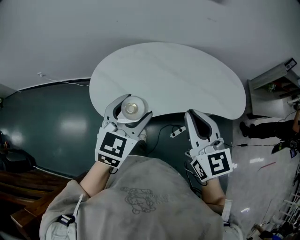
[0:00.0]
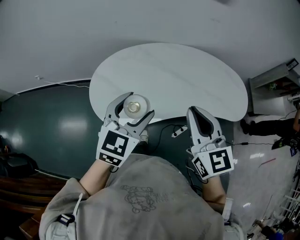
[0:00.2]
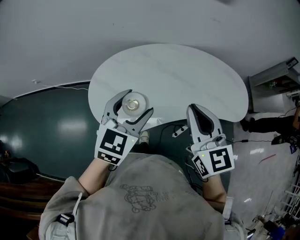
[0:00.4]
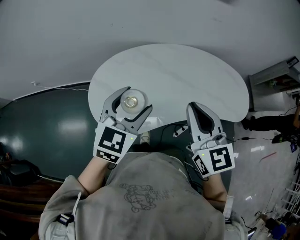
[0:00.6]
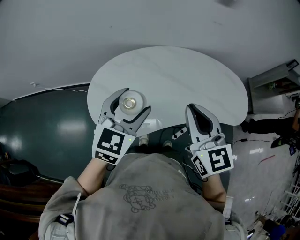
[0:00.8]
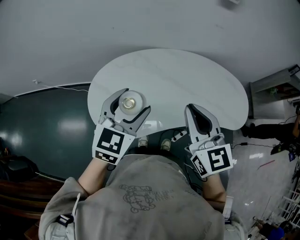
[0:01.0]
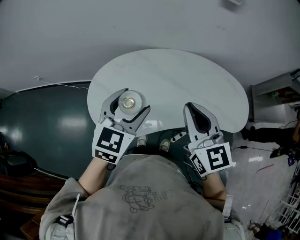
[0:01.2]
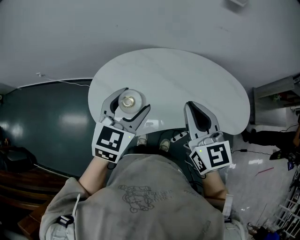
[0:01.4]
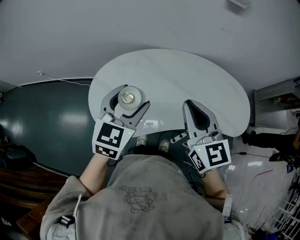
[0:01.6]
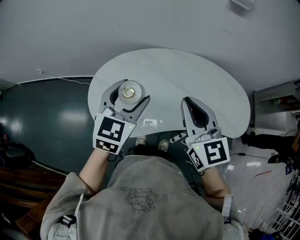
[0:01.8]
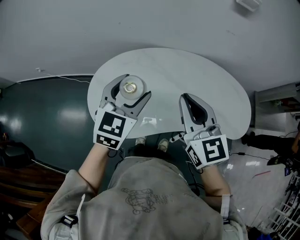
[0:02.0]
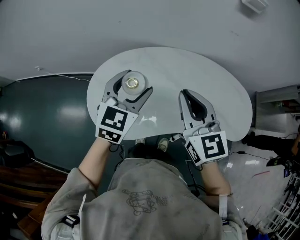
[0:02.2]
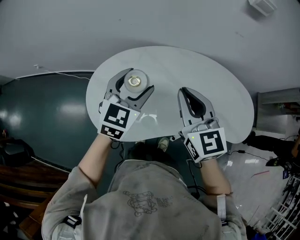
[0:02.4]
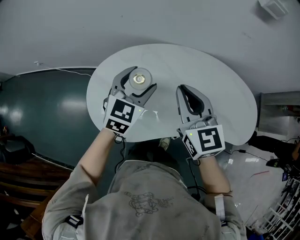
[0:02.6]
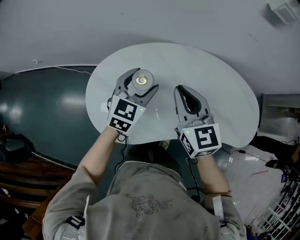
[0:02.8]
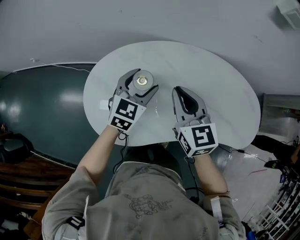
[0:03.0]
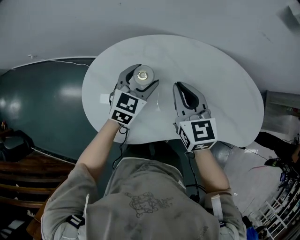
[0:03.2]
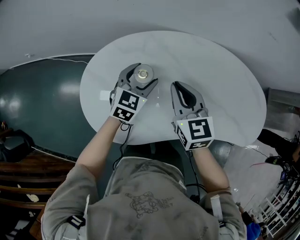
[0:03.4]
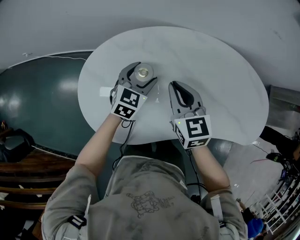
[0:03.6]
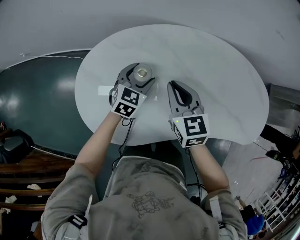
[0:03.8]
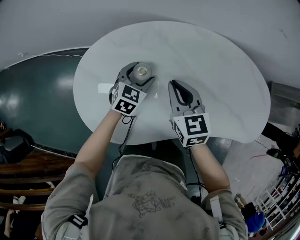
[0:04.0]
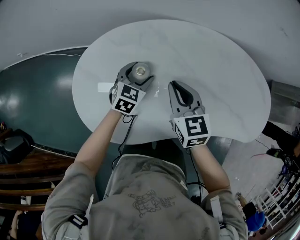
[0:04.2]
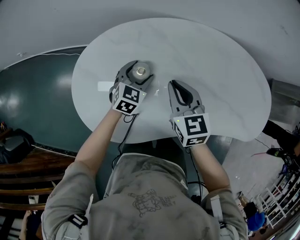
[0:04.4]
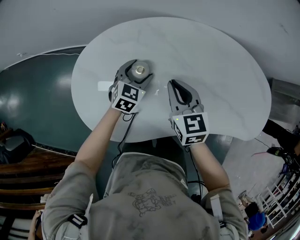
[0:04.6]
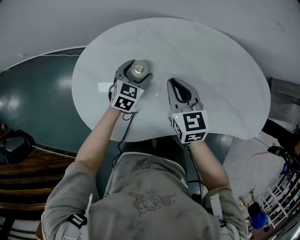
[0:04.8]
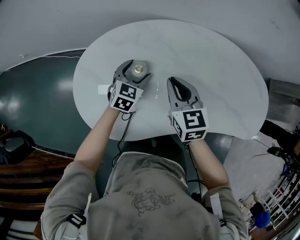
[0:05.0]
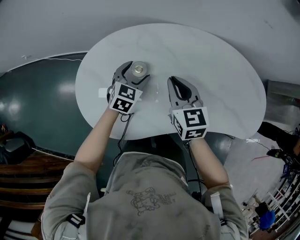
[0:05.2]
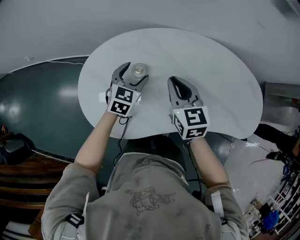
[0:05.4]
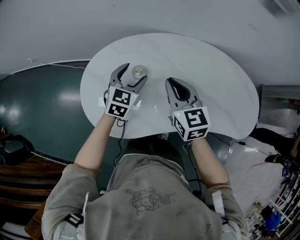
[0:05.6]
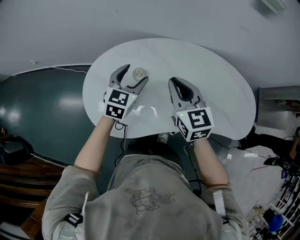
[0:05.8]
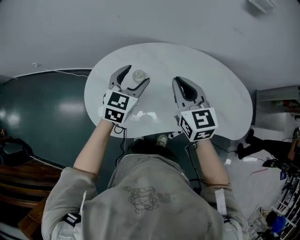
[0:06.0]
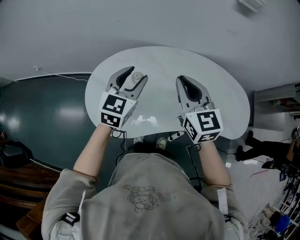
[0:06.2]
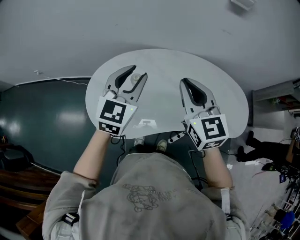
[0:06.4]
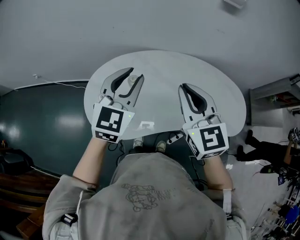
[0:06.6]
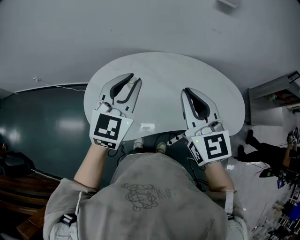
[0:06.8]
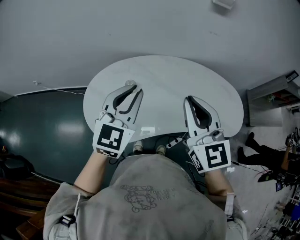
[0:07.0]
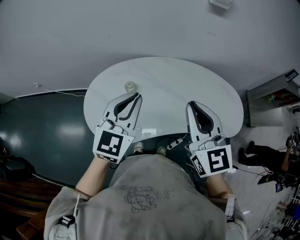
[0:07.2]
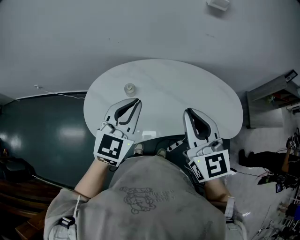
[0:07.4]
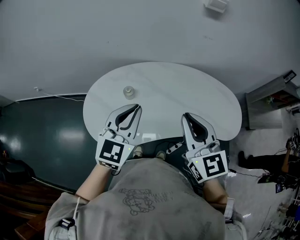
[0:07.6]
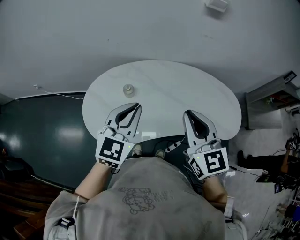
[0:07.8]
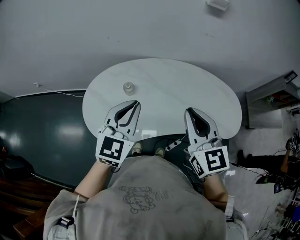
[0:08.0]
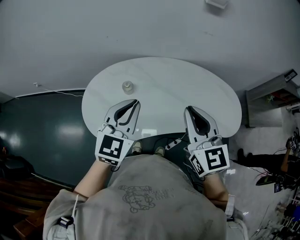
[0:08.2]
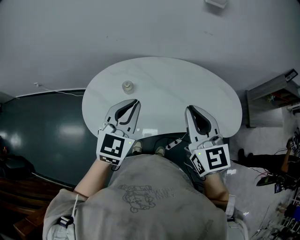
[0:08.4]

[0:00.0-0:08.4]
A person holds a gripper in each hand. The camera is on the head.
0:00.0 to 0:01.4: Both grippers travel together forward, roughly 15 cm.
0:01.4 to 0:02.8: The left gripper heads forward and downward, covering roughly 20 cm, while the right gripper is displaced forward, downward and to the left by roughly 20 cm.
0:02.8 to 0:04.2: Both grippers travel together downward, roughly 20 cm.
0:04.2 to 0:05.6: Both grippers travel together upward, some 10 cm.
0:05.6 to 0:07.0: The two grippers go some 25 cm upward and backward. The left gripper turns by about 20 degrees, and closes its fingers. Meanwhile the right gripper swivels approximately 20 degrees.
0:07.0 to 0:08.4: The right gripper changes place by about 5 cm.

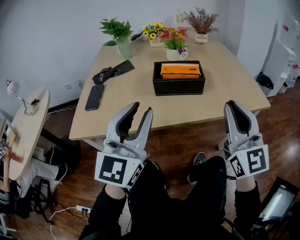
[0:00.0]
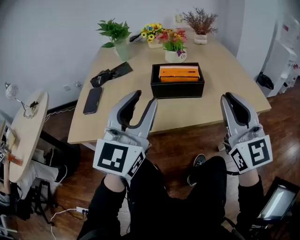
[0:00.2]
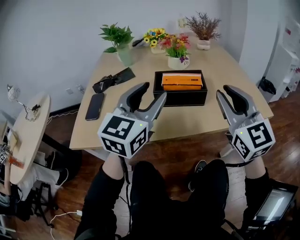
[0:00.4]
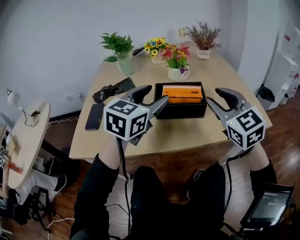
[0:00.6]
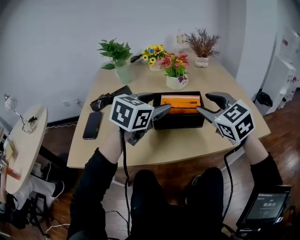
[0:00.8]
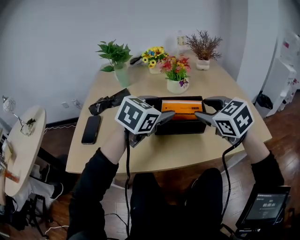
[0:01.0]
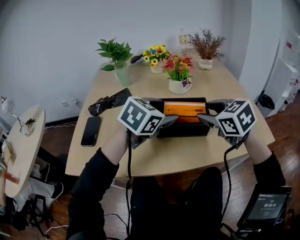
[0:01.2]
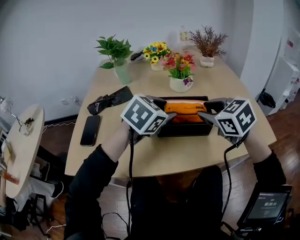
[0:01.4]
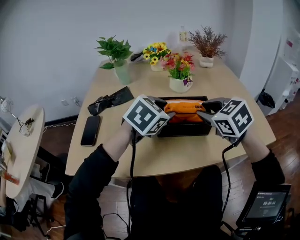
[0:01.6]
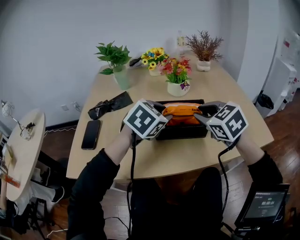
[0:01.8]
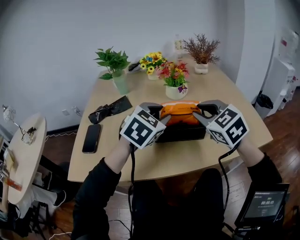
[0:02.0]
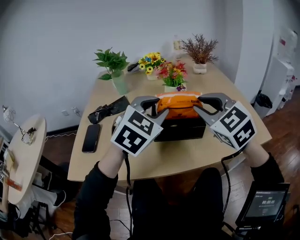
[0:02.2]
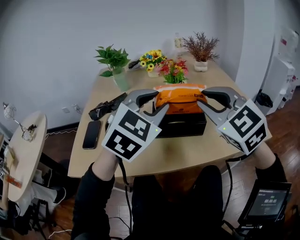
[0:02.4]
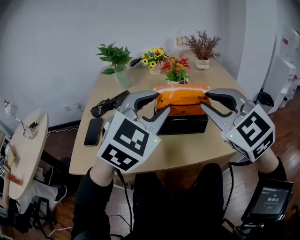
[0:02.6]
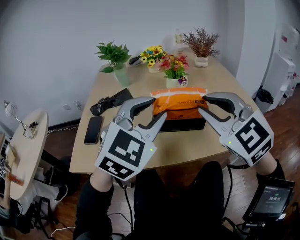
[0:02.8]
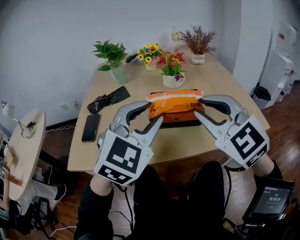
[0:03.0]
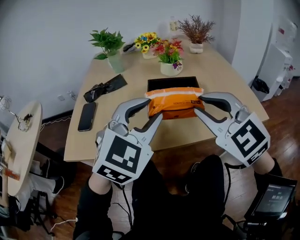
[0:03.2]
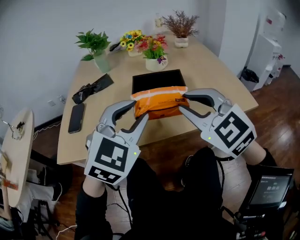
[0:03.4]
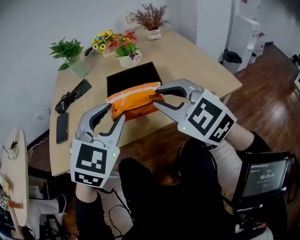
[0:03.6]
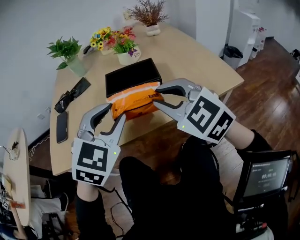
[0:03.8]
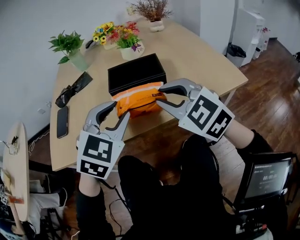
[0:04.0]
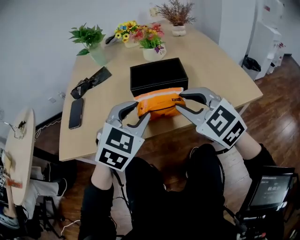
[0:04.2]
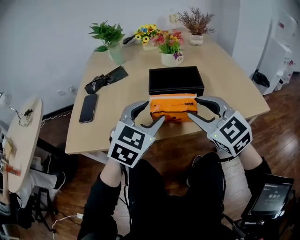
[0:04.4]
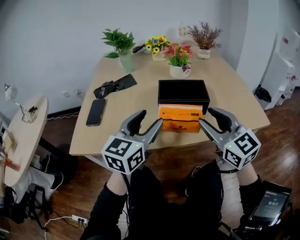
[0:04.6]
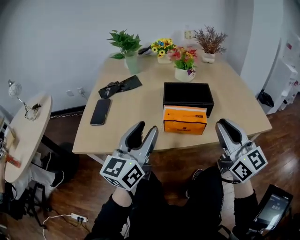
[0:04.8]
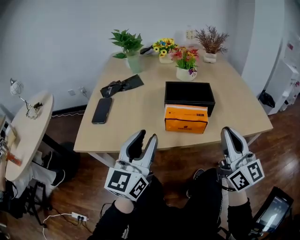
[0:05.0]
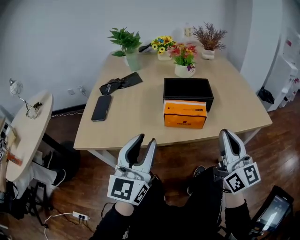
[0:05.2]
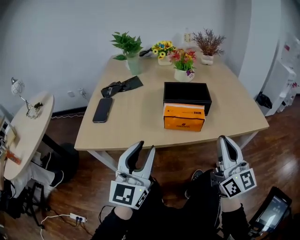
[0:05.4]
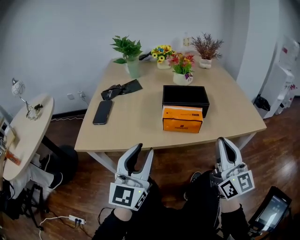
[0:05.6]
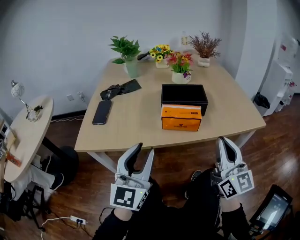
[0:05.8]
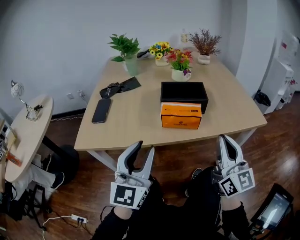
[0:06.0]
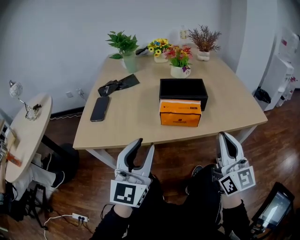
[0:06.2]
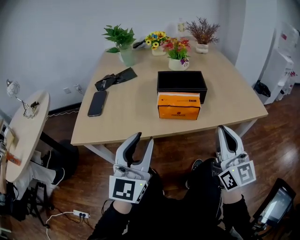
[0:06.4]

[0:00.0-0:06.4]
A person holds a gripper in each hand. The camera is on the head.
0:00.0 to 0:01.6: Both grippers travel together forward, approximately 25 cm. The left gripper angles its fingers downward, by roughly 50 degrees, and opens, then closes again; the right gripper points its fingers some 50 degrees further downward, and opens up.
0:01.6 to 0:03.2: Both grippers move backward and upward, approximately 20 cm. The left gripper rotates approximately 30 degrees; the right gripper turns by roughly 30 degrees.
0:03.2 to 0:04.8: The right gripper changes its angle by approximately 40 degrees, and opens, then closes again. The left gripper heads to the left and downward, covering approximately 10 cm, and rotates around the line of its fingers by some 50 degrees, counterclockwise from behind.
0:04.8 to 0:06.4: Both grippers move backward, roughly 5 cm. The left gripper swivels approximately 20 degrees.

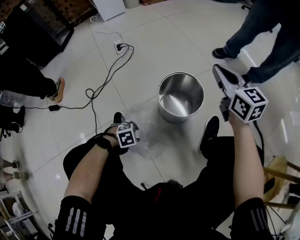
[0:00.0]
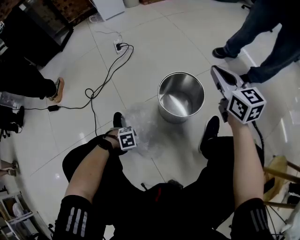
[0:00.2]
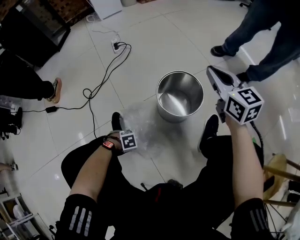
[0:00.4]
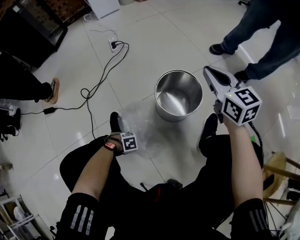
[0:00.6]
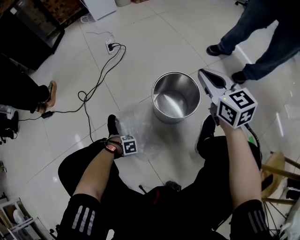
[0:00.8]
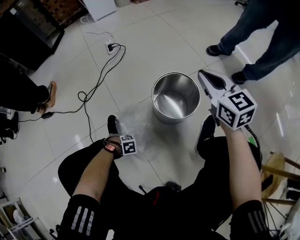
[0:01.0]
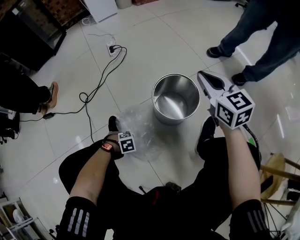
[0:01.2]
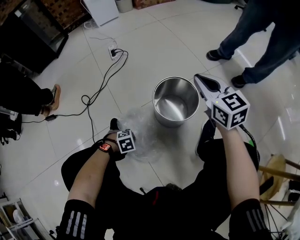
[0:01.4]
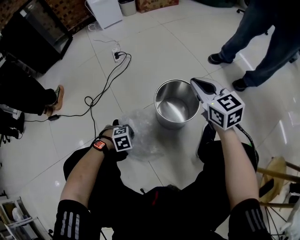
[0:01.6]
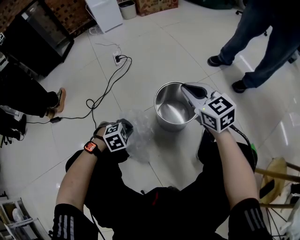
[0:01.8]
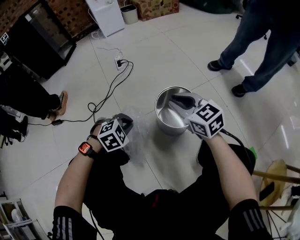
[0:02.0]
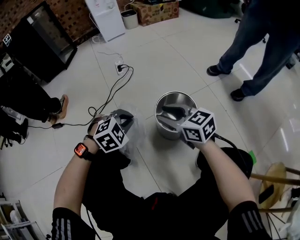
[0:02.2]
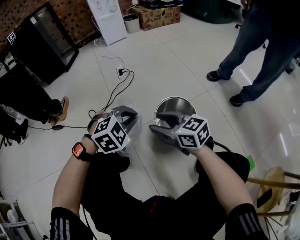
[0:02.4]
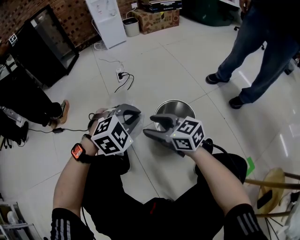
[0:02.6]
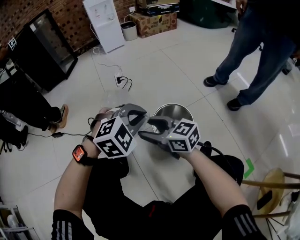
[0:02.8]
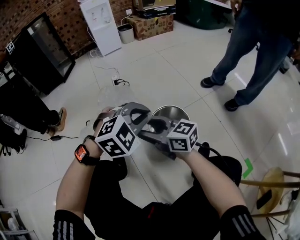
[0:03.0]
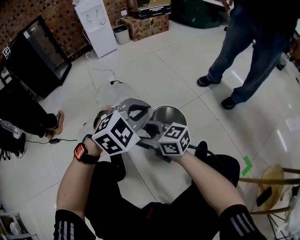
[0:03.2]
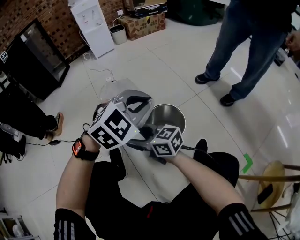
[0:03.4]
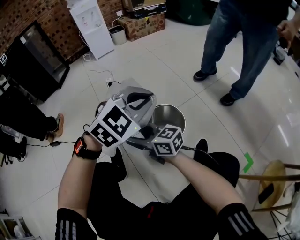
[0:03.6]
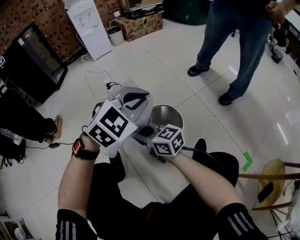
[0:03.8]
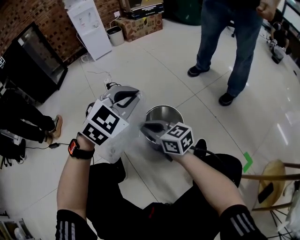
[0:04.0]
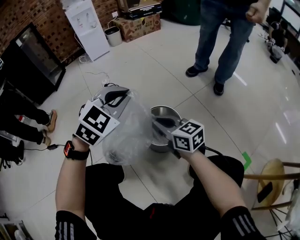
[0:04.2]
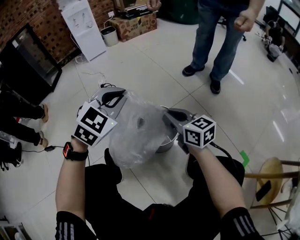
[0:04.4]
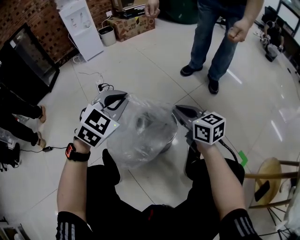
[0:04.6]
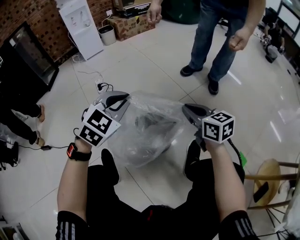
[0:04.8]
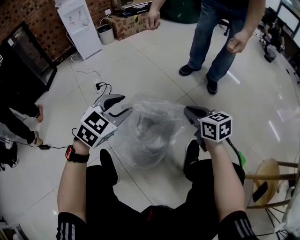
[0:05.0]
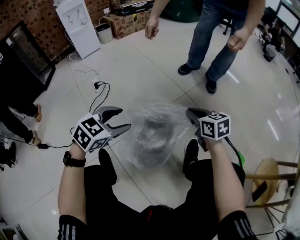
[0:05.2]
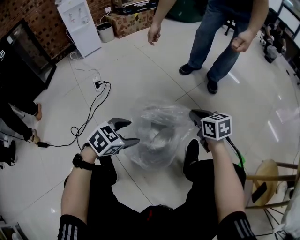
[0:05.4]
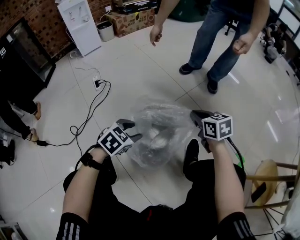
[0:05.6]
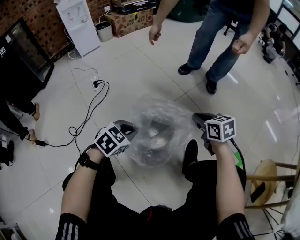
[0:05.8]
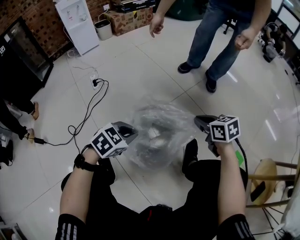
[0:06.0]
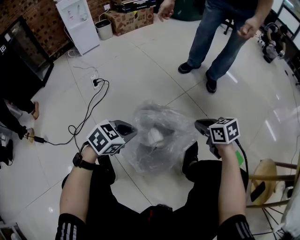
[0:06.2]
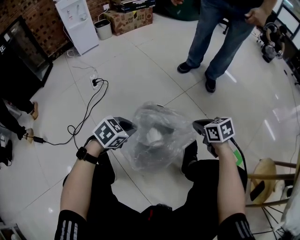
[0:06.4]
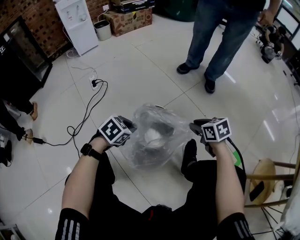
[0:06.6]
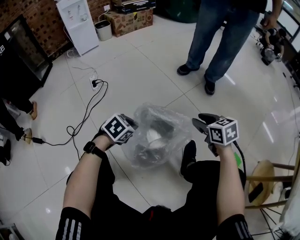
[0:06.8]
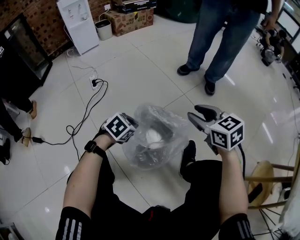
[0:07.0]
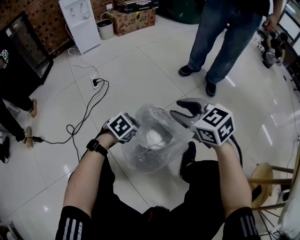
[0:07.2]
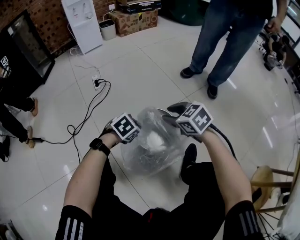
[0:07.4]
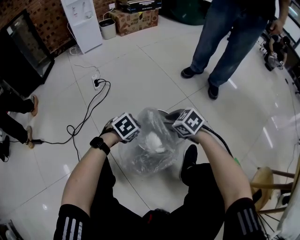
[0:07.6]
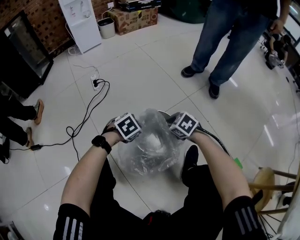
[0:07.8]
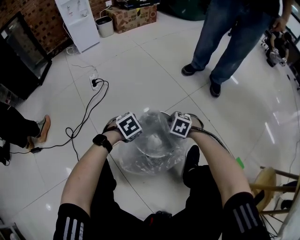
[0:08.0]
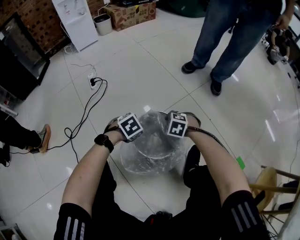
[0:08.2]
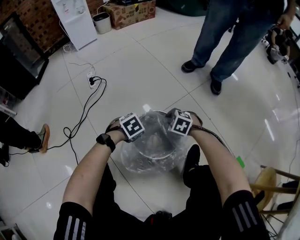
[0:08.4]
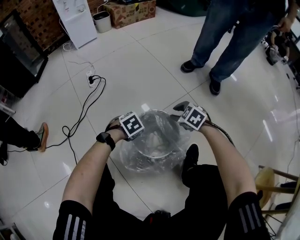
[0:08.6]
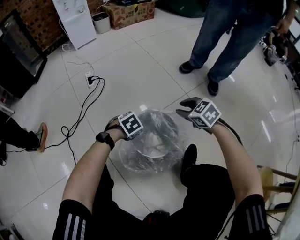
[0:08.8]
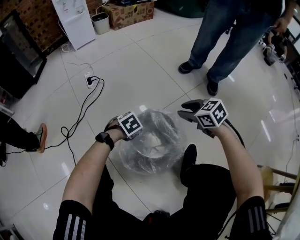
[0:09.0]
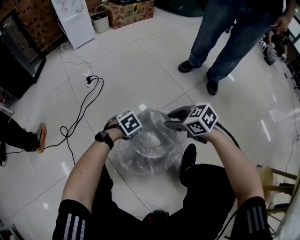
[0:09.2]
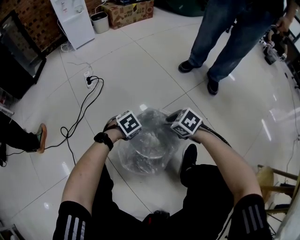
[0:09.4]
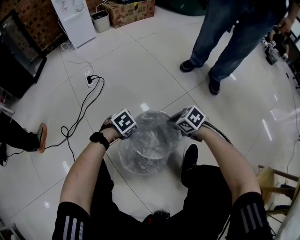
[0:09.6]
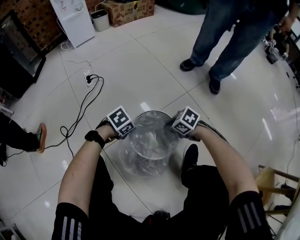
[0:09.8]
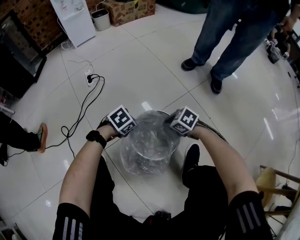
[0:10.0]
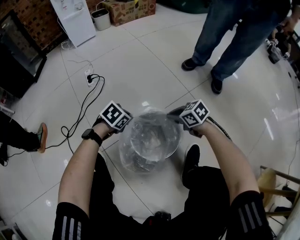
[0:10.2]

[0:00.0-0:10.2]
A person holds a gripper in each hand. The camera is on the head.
0:00.0 to 0:01.4: The left gripper moves some 10 cm downward and comes back, and closes up. The right gripper changes place by about 5 cm.
0:01.4 to 0:03.0: The right gripper moves some 20 cm, turns by about 40 degrees, and opens up. Meanwhile the left gripper shifts some 40 cm upward, and angles its fingers upward, by about 40 degrees.
0:03.0 to 0:04.4: The right gripper moves to the right, some 15 cm, rotates approximately 30 degrees, and closes. Meanwhile the left gripper moves forward and upward, roughly 10 cm.
0:04.4 to 0:05.8: The left gripper travels downward by roughly 20 cm, changes its angle by approximately 30 degrees, and opens, then closes again. The right gripper goes some 15 cm to the right and downward, and changes its angle by approximately 30 degrees.
0:05.8 to 0:07.2: The right gripper heads to the left and upward, covering some 15 cm, turns by some 30 degrees, and opens, while the left gripper travels downward by some 5 cm.
0:07.2 to 0:08.8: The right gripper goes roughly 20 cm downward and forward. Meanwhile the left gripper shifts roughly 10 cm downward and forward.
0:08.8 to 0:10.2: The left gripper moves about 5 cm; the right gripper moves downward, about 10 cm, rotates some 20 degrees, and closes its fingers.
